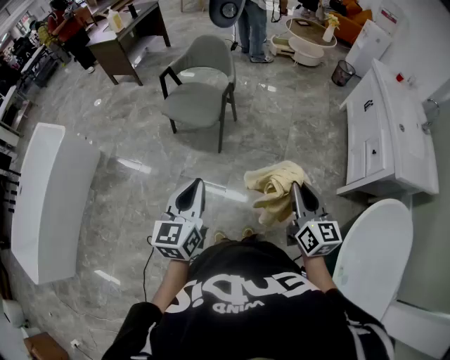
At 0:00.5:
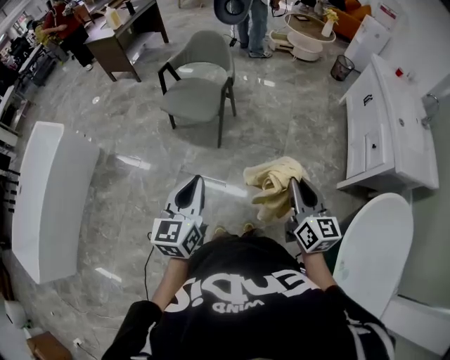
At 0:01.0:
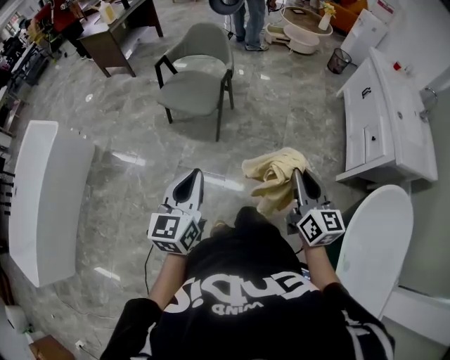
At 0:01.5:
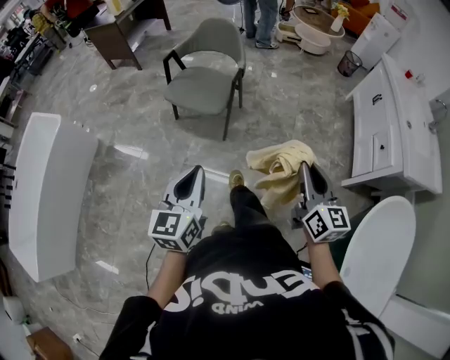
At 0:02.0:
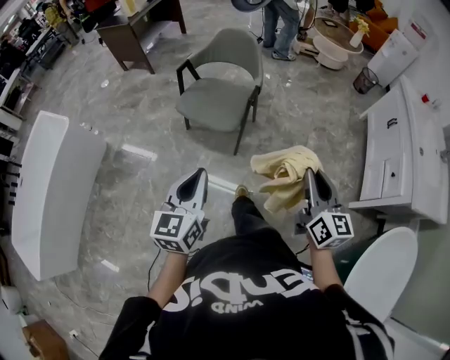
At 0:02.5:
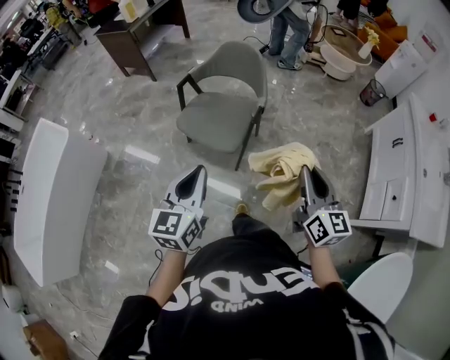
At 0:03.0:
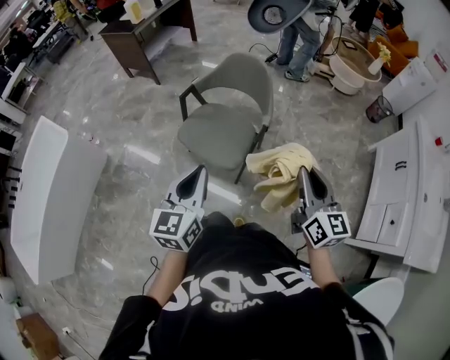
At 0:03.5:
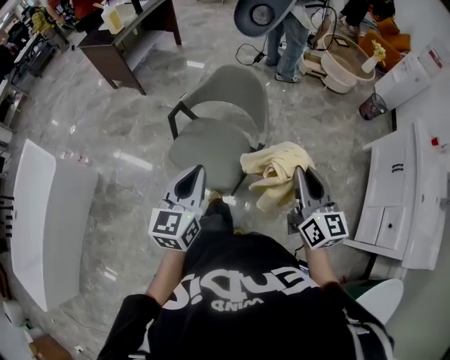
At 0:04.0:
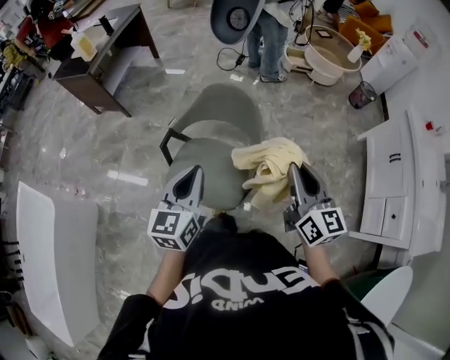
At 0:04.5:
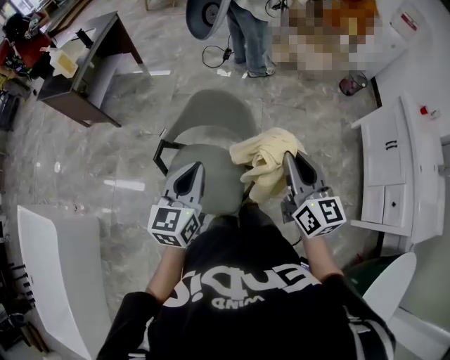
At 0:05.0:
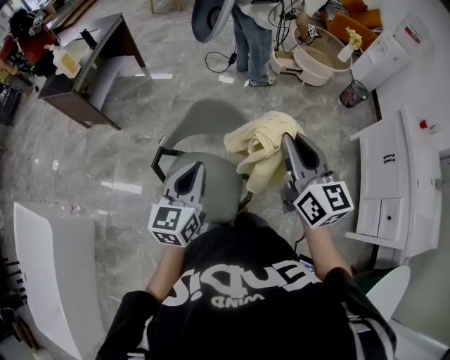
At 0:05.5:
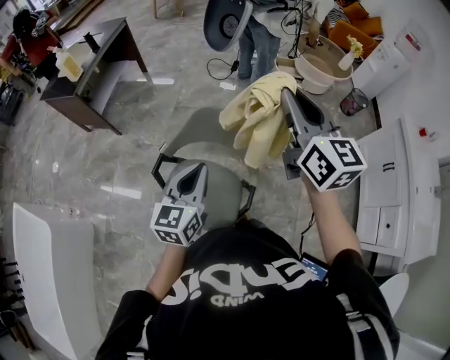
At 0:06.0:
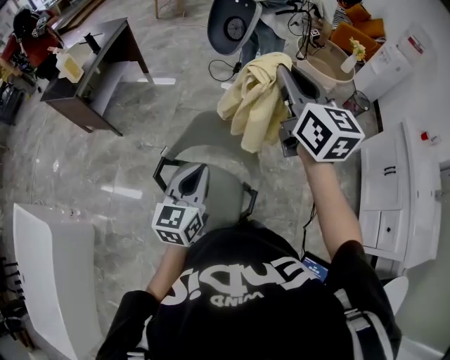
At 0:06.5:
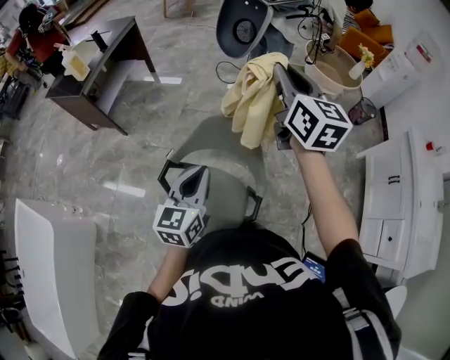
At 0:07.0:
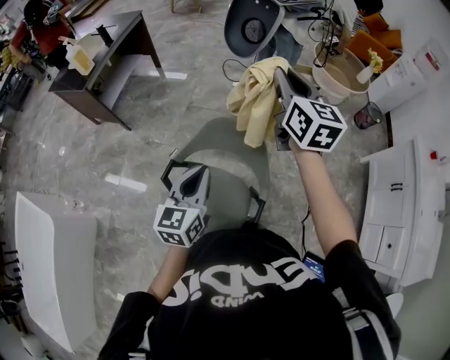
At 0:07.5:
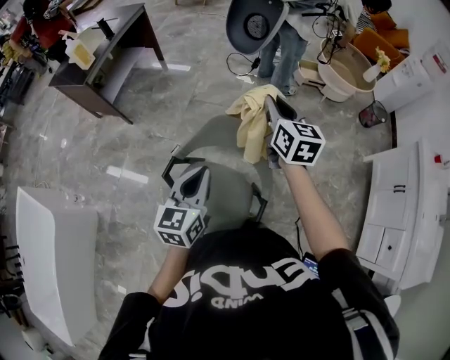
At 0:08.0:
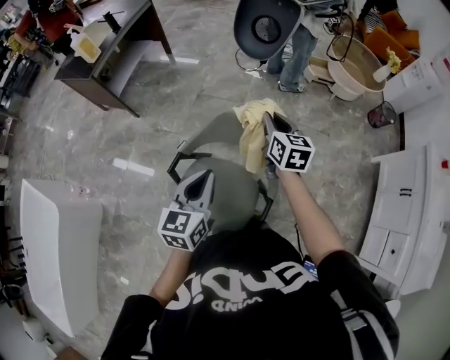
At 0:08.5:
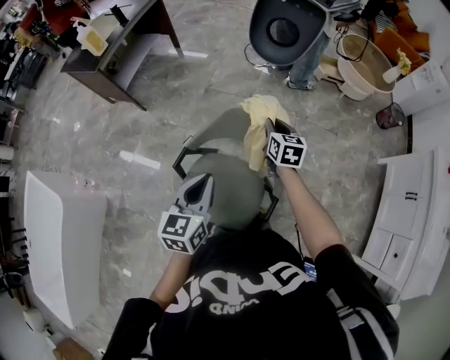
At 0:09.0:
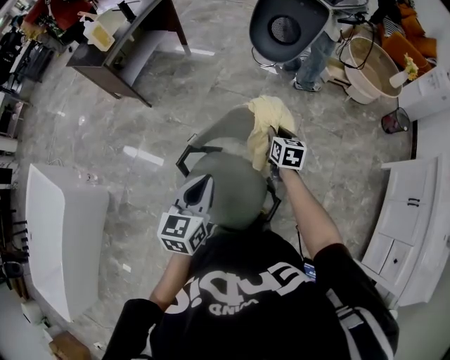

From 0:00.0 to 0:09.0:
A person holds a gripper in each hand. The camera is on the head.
From 0:00.0 to 0:02.0: Both grippers move forward and to the left, about 20 cm.
From 0:02.0 to 0:04.5: The pair of grippers is taken forward, approximately 50 cm.
From 0:04.5 to 0:07.0: The left gripper shifts some 10 cm forward. The right gripper shifts roughly 30 cm forward.
From 0:07.0 to 0:09.0: The right gripper is displaced downward by roughly 35 cm, and angles its fingers downward, by some 30 degrees. Meanwhile the left gripper shifts by about 5 cm.

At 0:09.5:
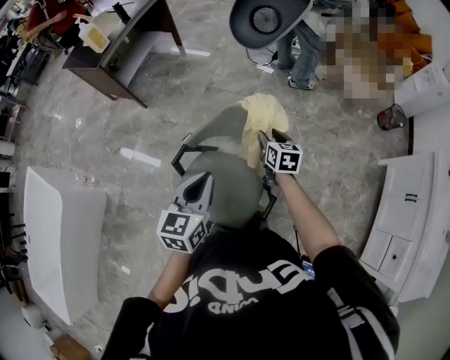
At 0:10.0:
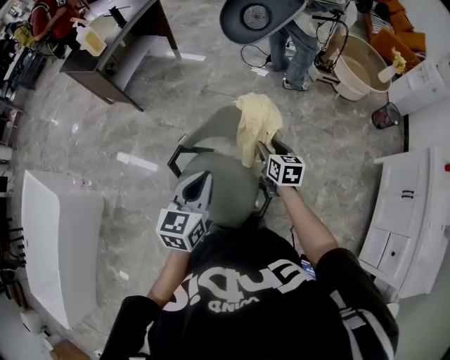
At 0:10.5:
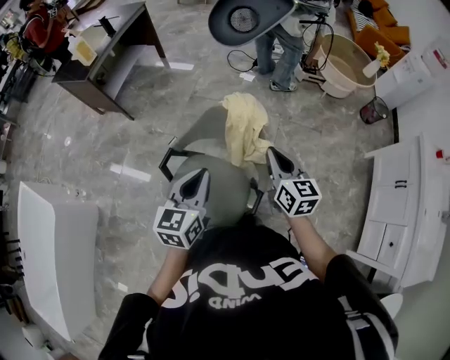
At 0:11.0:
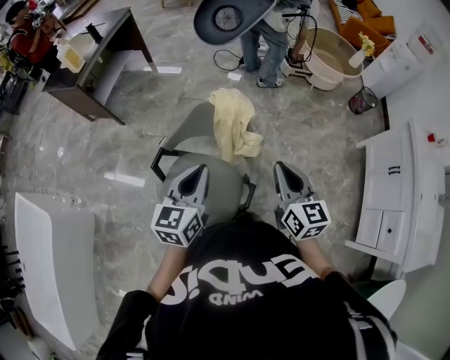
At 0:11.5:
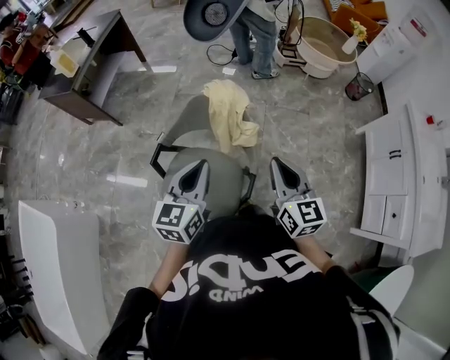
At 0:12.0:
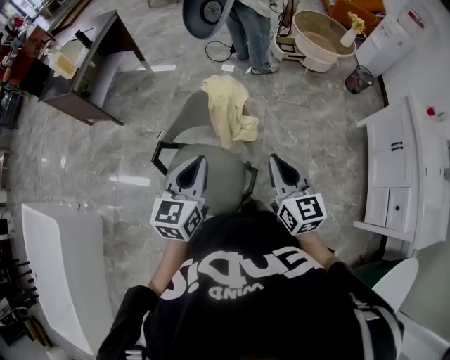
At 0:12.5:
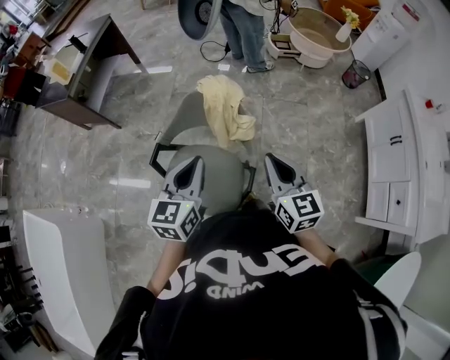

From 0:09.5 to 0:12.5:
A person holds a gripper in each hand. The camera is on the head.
From 0:09.5 to 0:11.0: The right gripper travels backward, upward and to the right by some 30 cm, swivels roughly 20 degrees, and closes up, while the left gripper goes approximately 5 cm to the right.
From 0:11.0 to 0:12.5: The grippers make only small movements.

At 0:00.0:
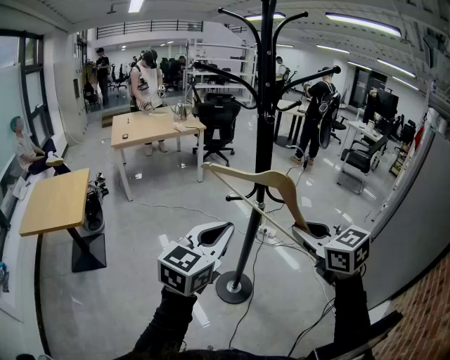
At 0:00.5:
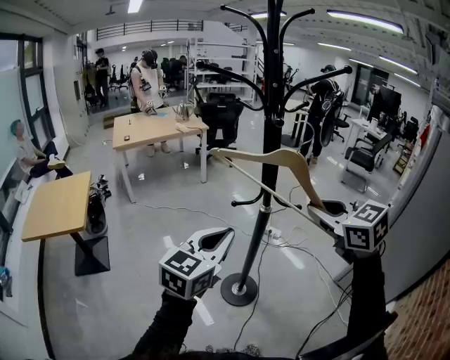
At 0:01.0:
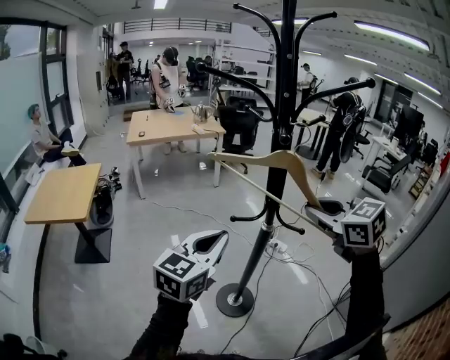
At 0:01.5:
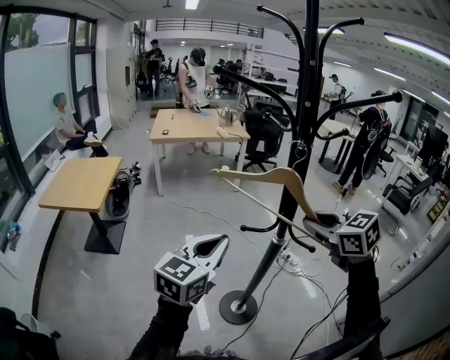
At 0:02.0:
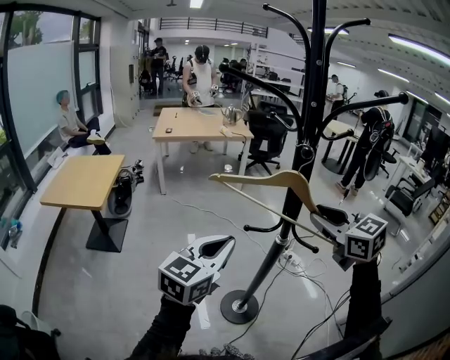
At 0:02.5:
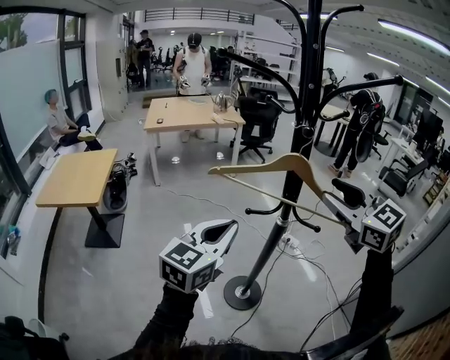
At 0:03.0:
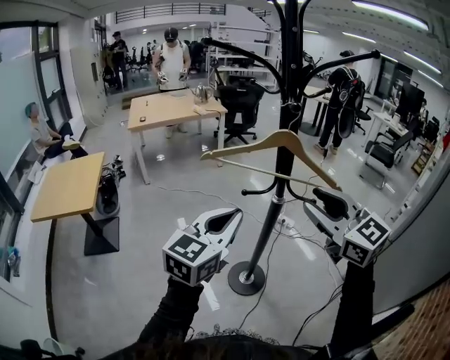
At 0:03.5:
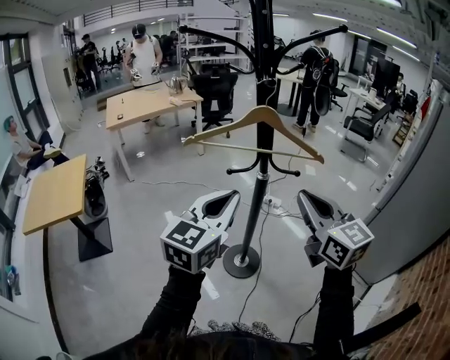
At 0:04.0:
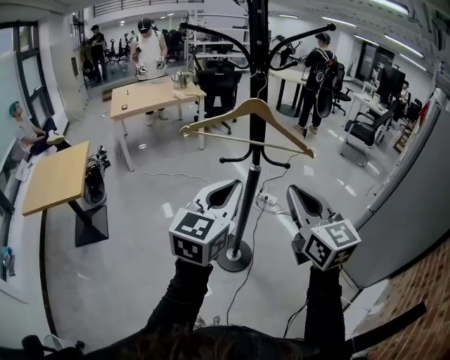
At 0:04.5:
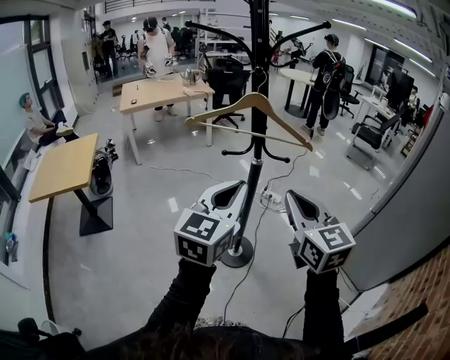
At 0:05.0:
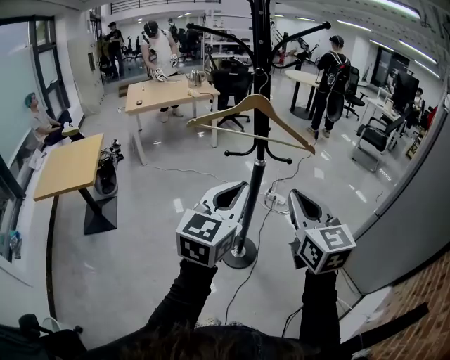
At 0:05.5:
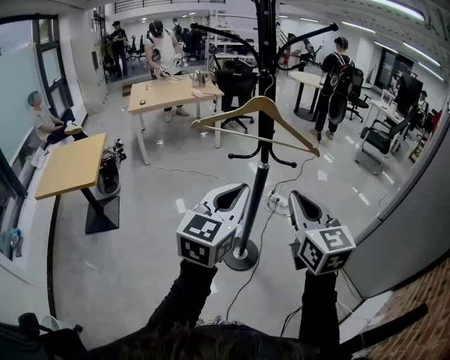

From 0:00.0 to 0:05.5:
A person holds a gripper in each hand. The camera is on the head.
From 0:00.0 to 0:02.0: The right gripper moves forward, about 20 cm. The left gripper is displaced forward by about 10 cm.
From 0:02.0 to 0:03.5: The left gripper heads backward, covering some 5 cm; the right gripper shifts about 20 cm backward, and changes its angle by about 30 degrees.
From 0:03.5 to 0:05.5: The left gripper is displaced to the right and backward by some 10 cm.

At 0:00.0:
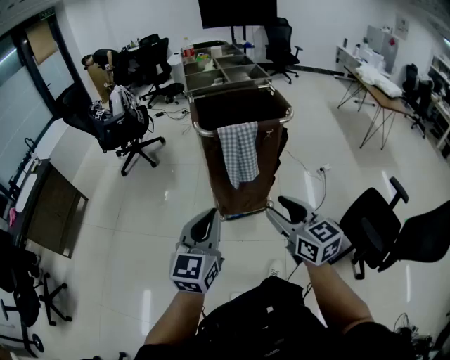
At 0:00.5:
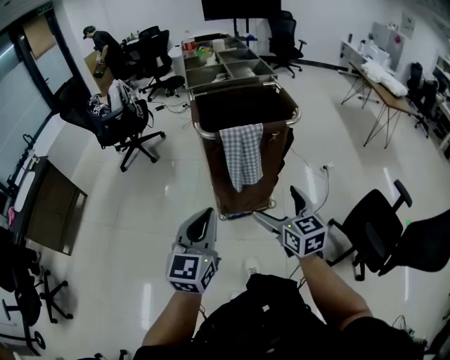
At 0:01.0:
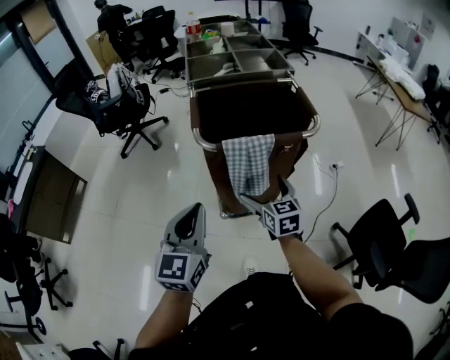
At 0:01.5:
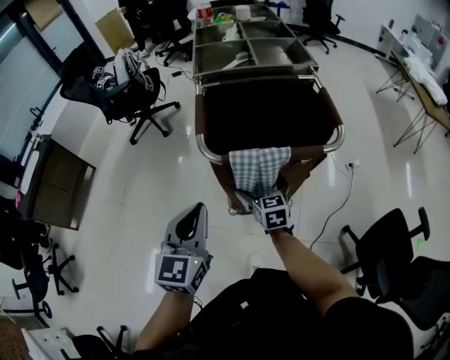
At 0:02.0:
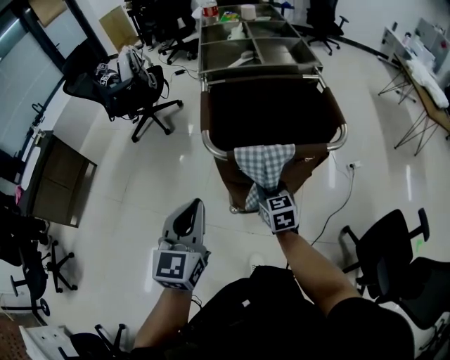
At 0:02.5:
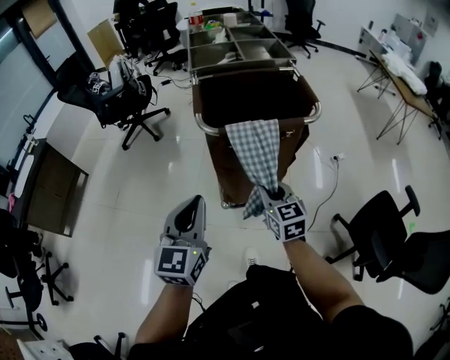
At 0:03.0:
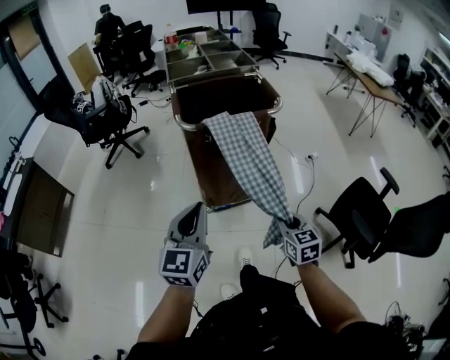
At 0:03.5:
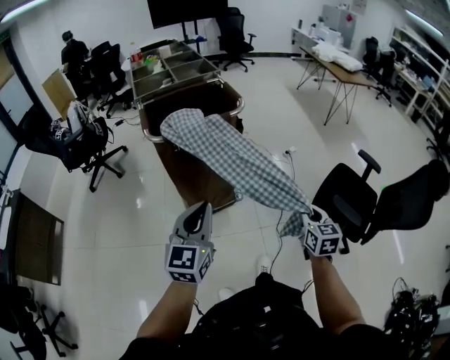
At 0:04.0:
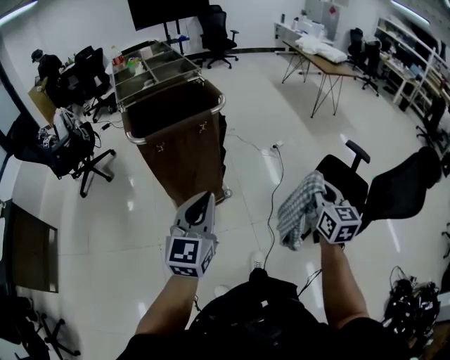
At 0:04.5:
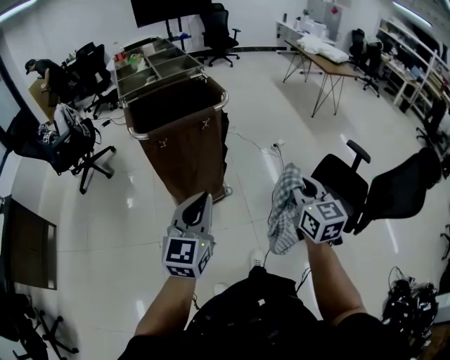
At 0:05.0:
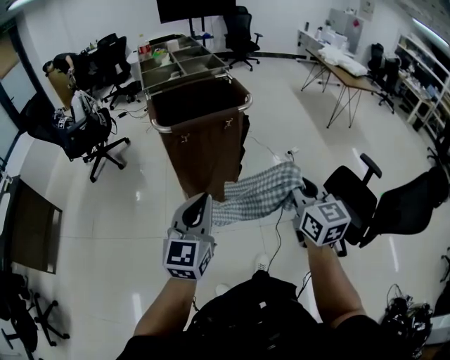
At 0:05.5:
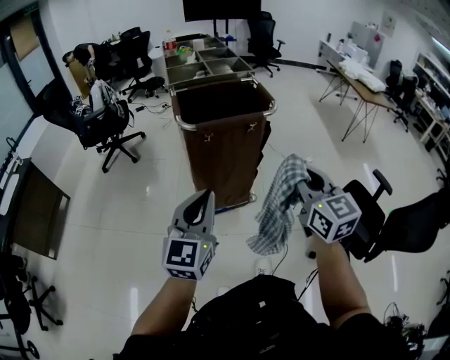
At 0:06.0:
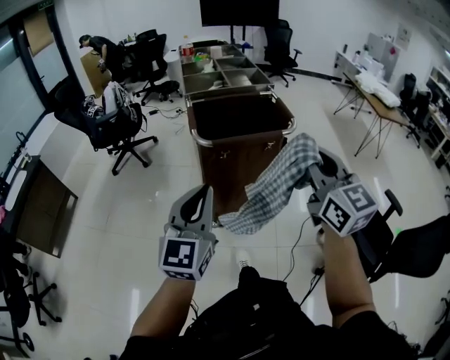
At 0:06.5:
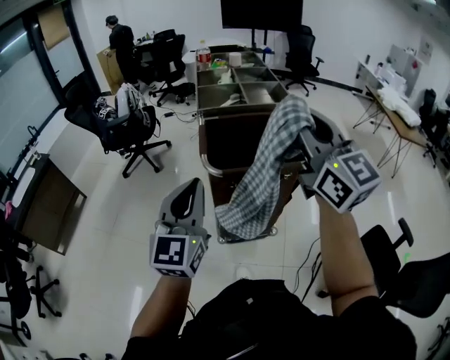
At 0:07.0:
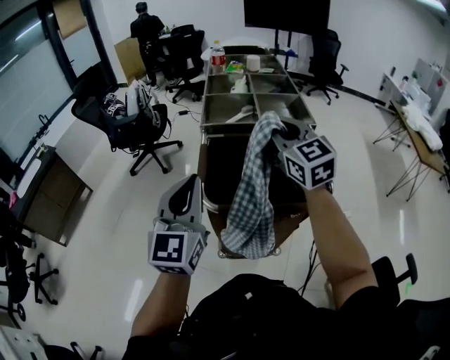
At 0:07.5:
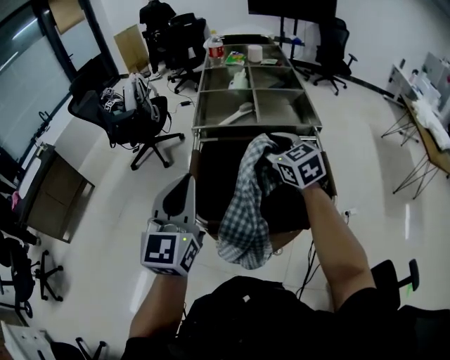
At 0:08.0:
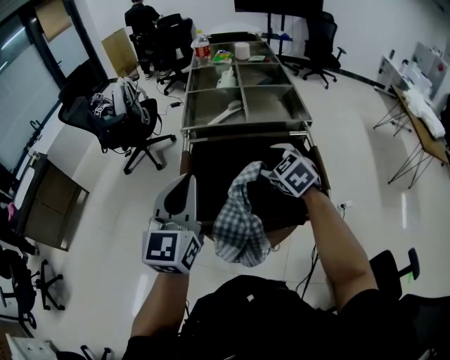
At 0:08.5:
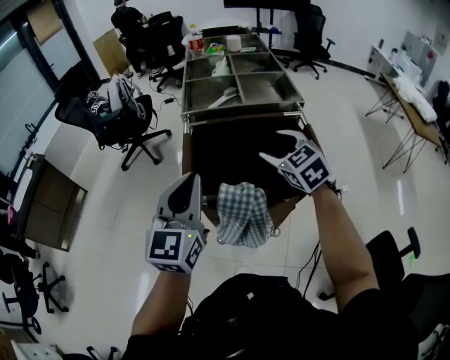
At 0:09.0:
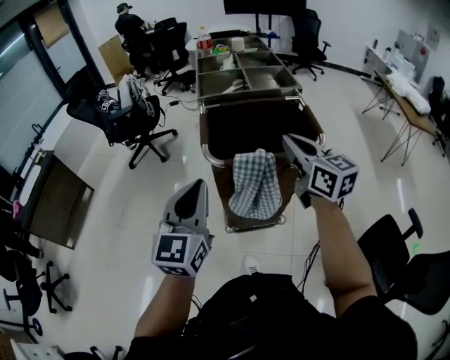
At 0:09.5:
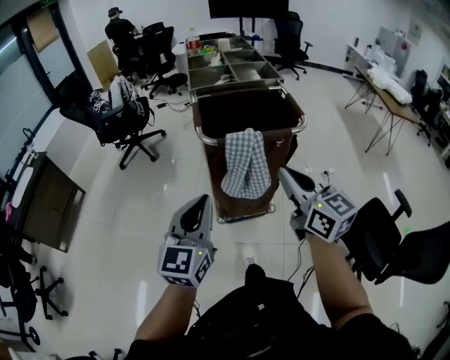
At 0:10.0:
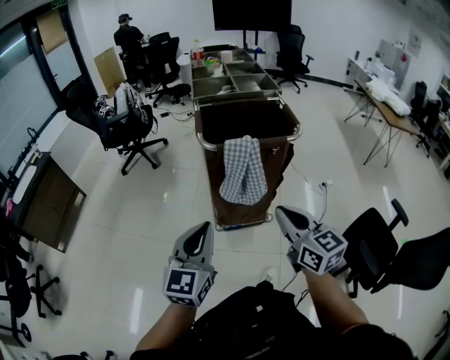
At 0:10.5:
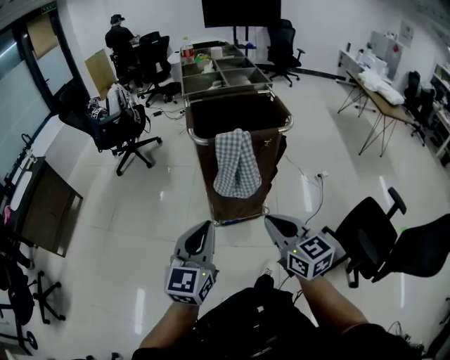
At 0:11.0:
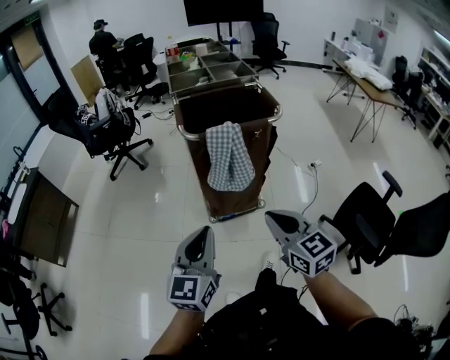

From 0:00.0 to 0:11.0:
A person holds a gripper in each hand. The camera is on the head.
From 0:00.0 to 0:02.0: The left gripper travels forward by some 20 cm; the right gripper heads forward and downward, covering some 35 cm, and opens, then closes again.
From 0:02.0 to 0:03.5: The right gripper changes place by about 50 cm, and turns by roughly 40 degrees. The left gripper changes place by about 25 cm, and swivels approximately 30 degrees.
From 0:03.5 to 0:05.5: The right gripper shifts some 25 cm upward and to the left, and swivels roughly 30 degrees, while the left gripper shifts about 5 cm to the left.
From 0:05.5 to 0:07.5: Both grippers move forward, some 50 cm. The right gripper changes its angle by about 30 degrees. Meanwhile the left gripper turns by approximately 20 degrees.
From 0:07.5 to 0:09.0: Both grippers move backward, roughly 20 cm. The right gripper swivels about 30 degrees.
From 0:09.0 to 0:11.0: The right gripper travels backward by roughly 30 cm. Meanwhile the left gripper travels backward and downward by some 25 cm.
